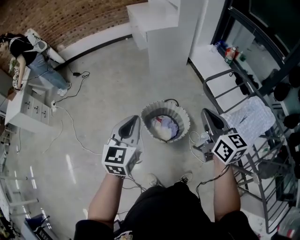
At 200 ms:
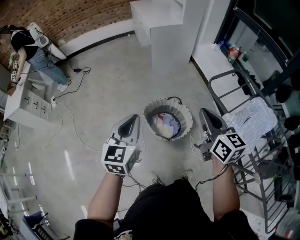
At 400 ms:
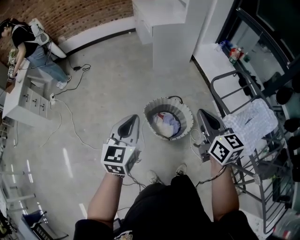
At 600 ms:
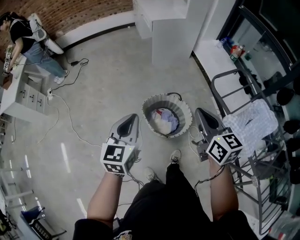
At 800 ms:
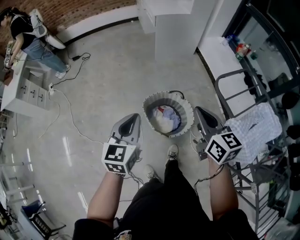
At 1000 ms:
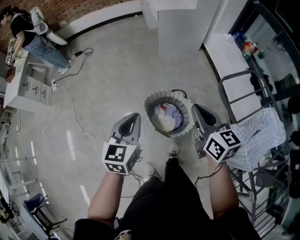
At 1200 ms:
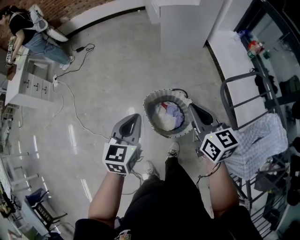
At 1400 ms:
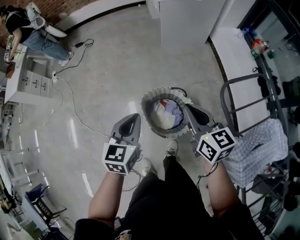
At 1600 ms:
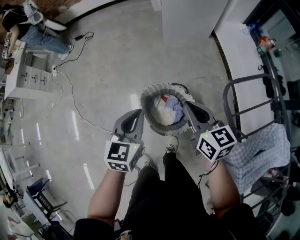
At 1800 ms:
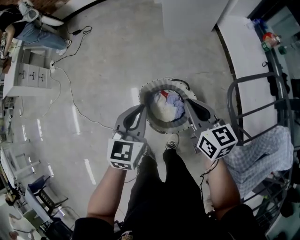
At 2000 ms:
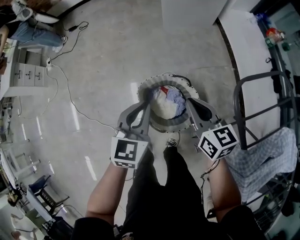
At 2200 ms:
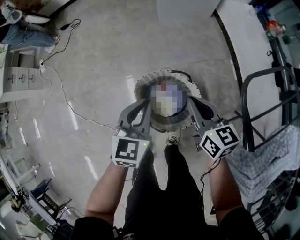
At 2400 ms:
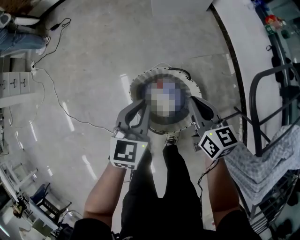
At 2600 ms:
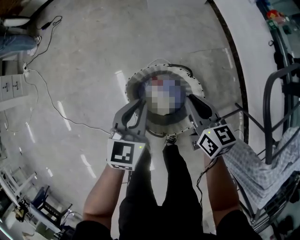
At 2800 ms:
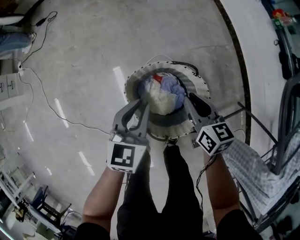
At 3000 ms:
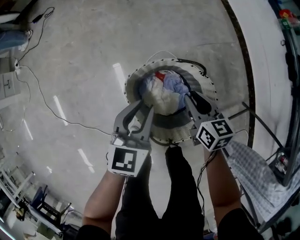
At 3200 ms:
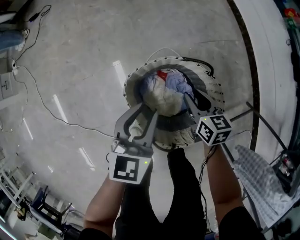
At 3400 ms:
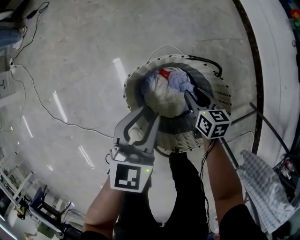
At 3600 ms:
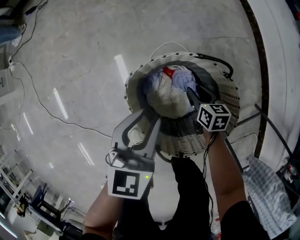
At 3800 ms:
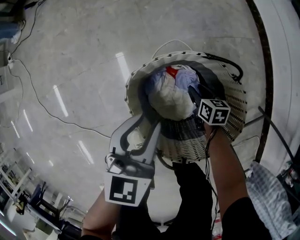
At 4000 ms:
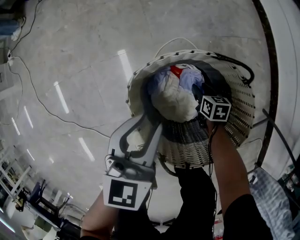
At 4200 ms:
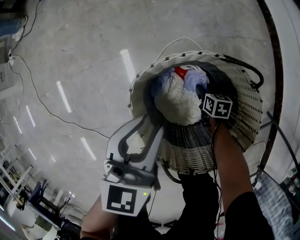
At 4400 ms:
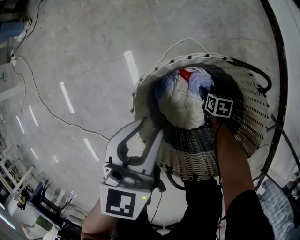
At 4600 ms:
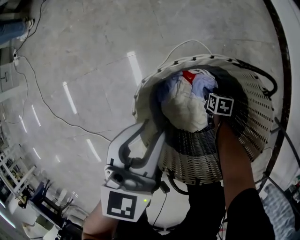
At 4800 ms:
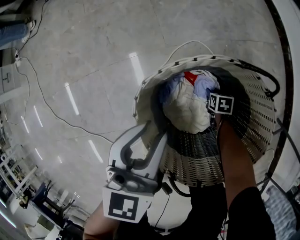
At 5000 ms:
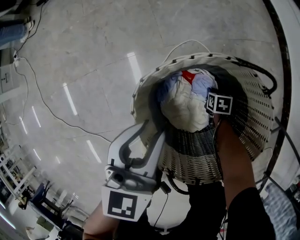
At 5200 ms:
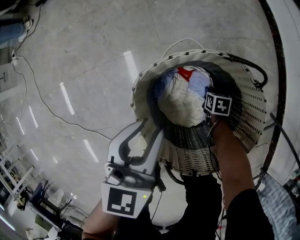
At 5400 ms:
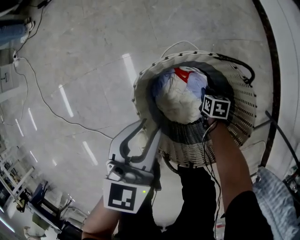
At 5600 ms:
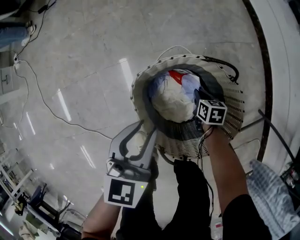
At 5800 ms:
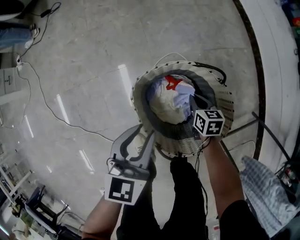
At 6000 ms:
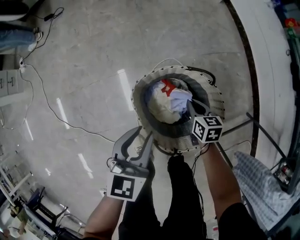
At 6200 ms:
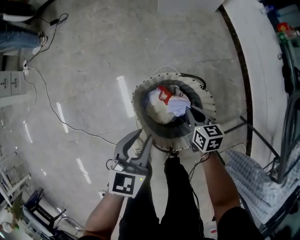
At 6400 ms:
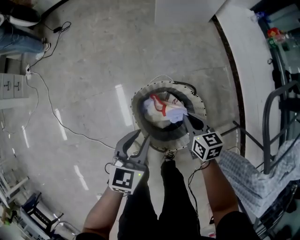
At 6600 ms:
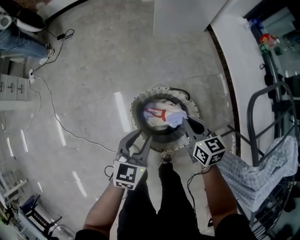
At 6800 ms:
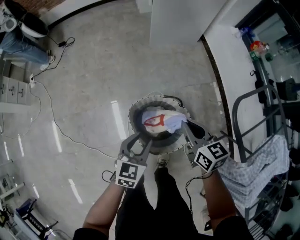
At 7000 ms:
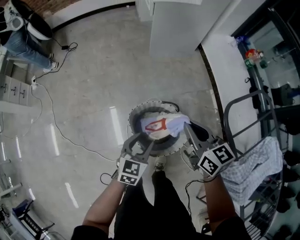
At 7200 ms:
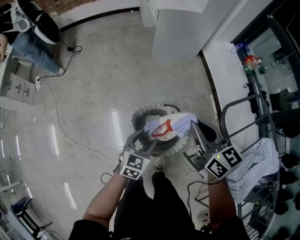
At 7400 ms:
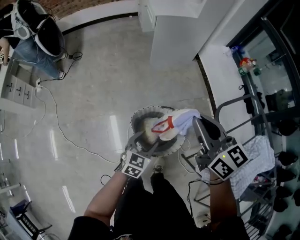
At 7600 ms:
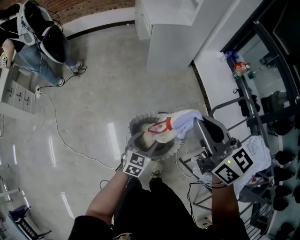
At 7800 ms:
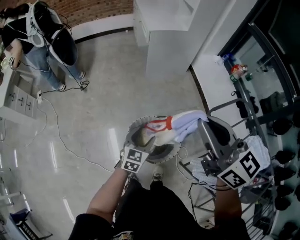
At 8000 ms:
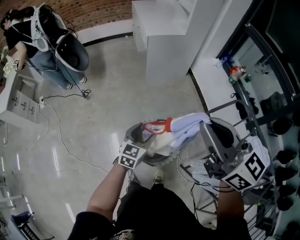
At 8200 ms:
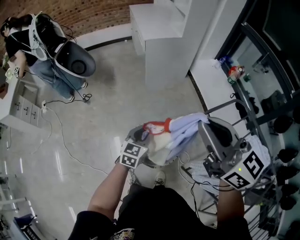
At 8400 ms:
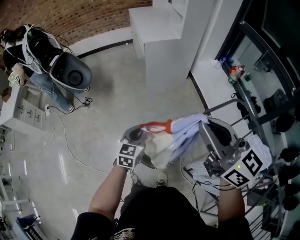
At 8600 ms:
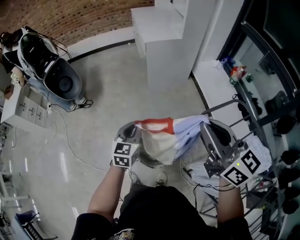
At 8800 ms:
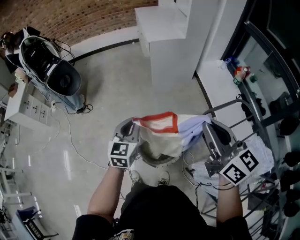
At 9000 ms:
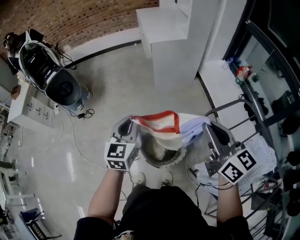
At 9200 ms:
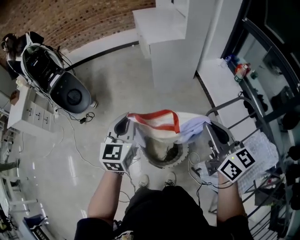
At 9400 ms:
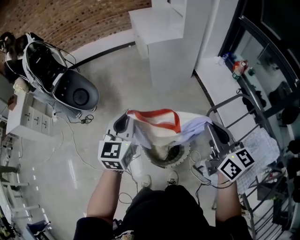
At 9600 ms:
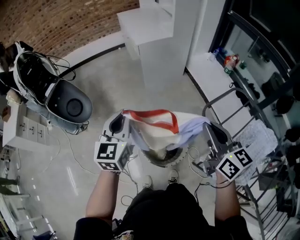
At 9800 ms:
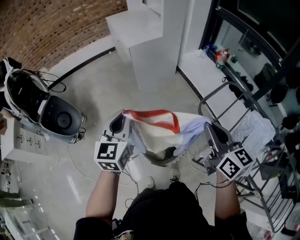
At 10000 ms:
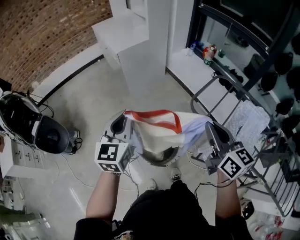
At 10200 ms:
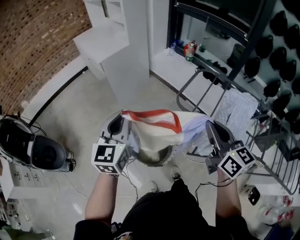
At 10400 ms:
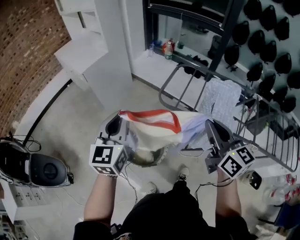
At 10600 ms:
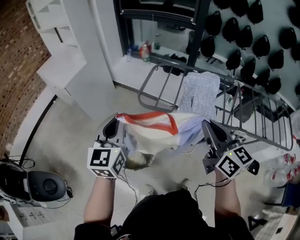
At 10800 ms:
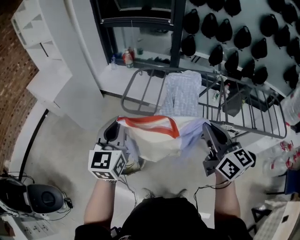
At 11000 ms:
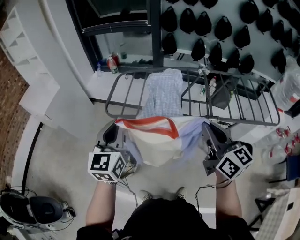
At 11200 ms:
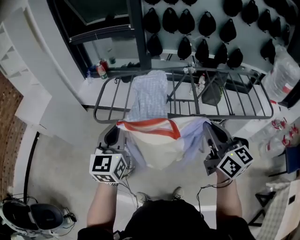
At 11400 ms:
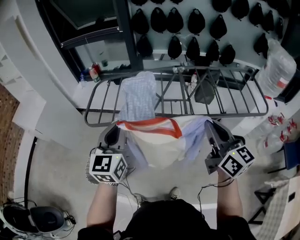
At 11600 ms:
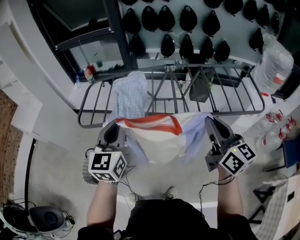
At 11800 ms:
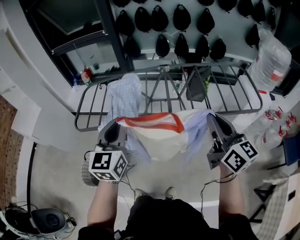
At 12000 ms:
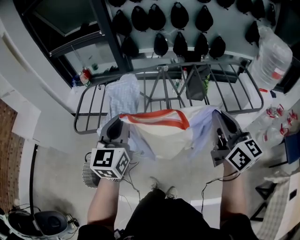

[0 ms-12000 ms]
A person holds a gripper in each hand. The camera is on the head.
0 ms to 1600 ms: The left gripper shifts approximately 20 cm downward, forward and to the right; the right gripper heads forward and downward, covering approximately 25 cm, and rotates about 20 degrees.
1600 ms to 3000 ms: The two grippers go roughly 35 cm downward. The right gripper opens its fingers.
3000 ms to 4400 ms: The left gripper is displaced downward by about 15 cm, while the right gripper heads downward, covering approximately 40 cm, tips its fingers downward by about 30 degrees, and opens.
4400 ms to 6000 ms: The right gripper moves upward, roughly 30 cm, rotates roughly 20 degrees, and closes its fingers. The left gripper shifts about 15 cm upward and backward.
6000 ms to 7600 ms: The left gripper moves upward, some 20 cm, and opens its fingers, while the right gripper goes some 70 cm upward, and tips its fingers upward by some 40 degrees.
7600 ms to 9000 ms: The left gripper shifts some 25 cm upward, turns by some 30 degrees, and closes; the right gripper goes roughly 10 cm to the right.
9000 ms to 10400 ms: The right gripper changes place by roughly 20 cm, and swivels some 50 degrees; the left gripper is displaced upward by approximately 10 cm, and changes its angle by approximately 40 degrees.
10400 ms to 12000 ms: The two grippers travel together, roughly 60 cm. The right gripper swivels approximately 30 degrees. Meanwhile the left gripper changes its angle by about 30 degrees.

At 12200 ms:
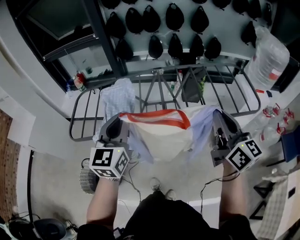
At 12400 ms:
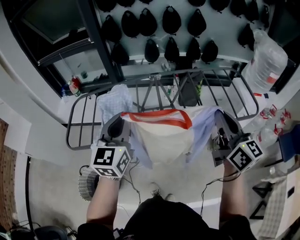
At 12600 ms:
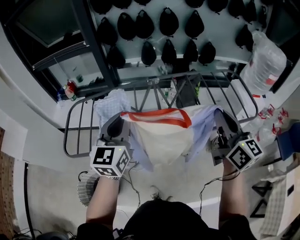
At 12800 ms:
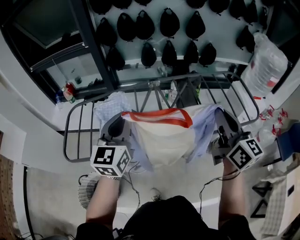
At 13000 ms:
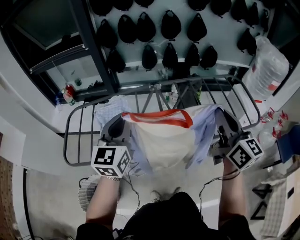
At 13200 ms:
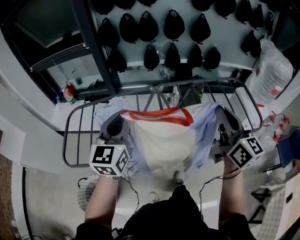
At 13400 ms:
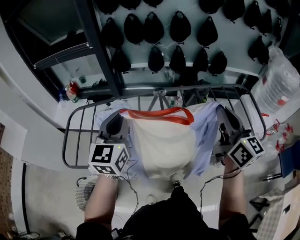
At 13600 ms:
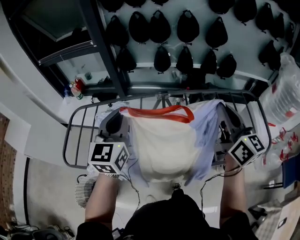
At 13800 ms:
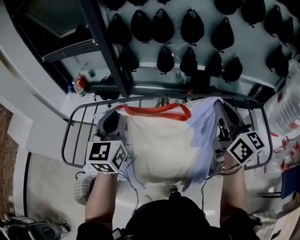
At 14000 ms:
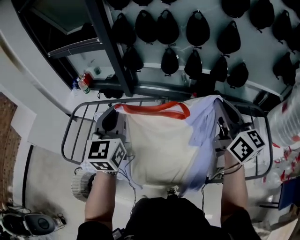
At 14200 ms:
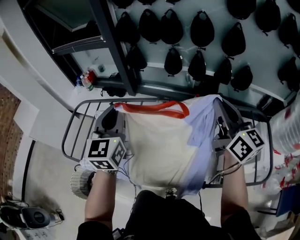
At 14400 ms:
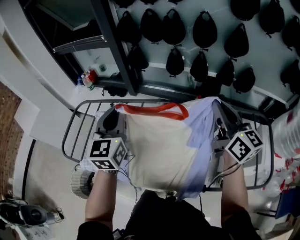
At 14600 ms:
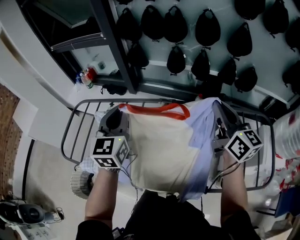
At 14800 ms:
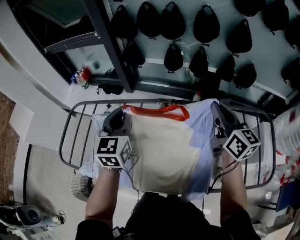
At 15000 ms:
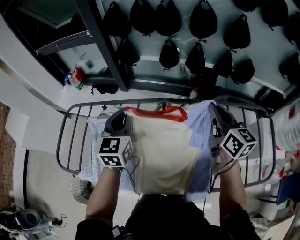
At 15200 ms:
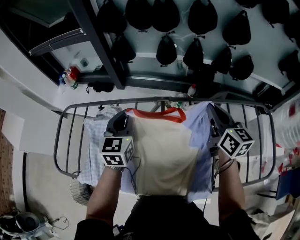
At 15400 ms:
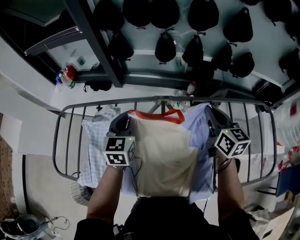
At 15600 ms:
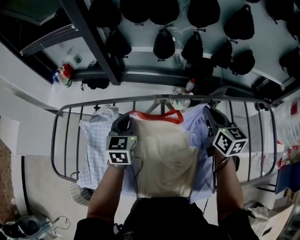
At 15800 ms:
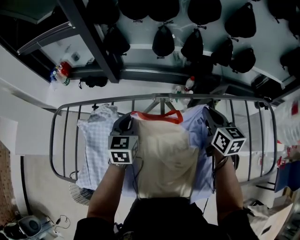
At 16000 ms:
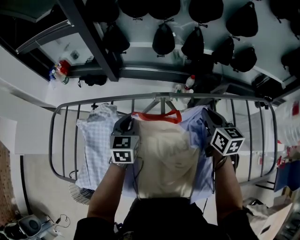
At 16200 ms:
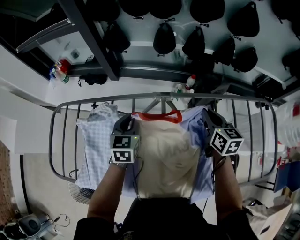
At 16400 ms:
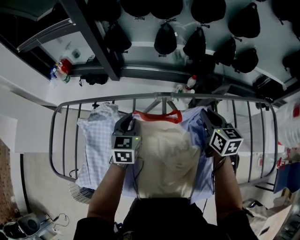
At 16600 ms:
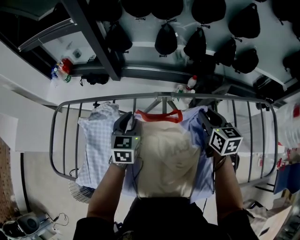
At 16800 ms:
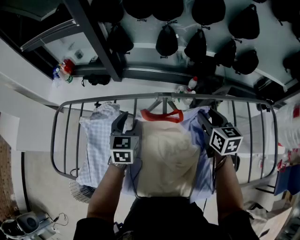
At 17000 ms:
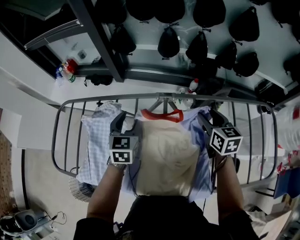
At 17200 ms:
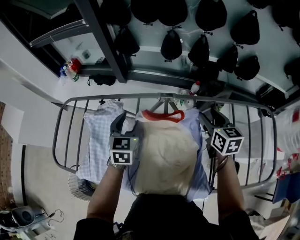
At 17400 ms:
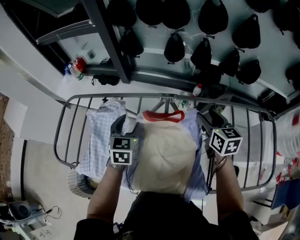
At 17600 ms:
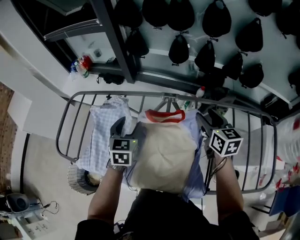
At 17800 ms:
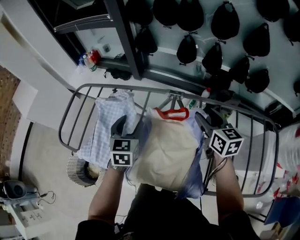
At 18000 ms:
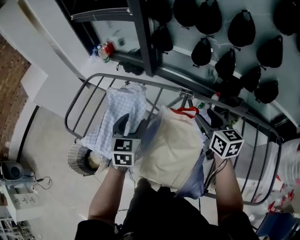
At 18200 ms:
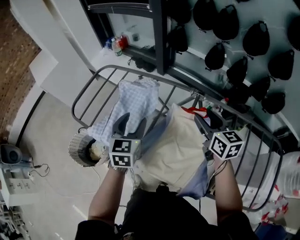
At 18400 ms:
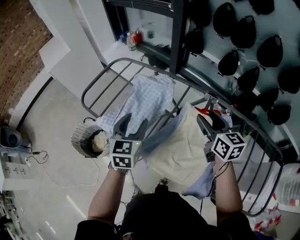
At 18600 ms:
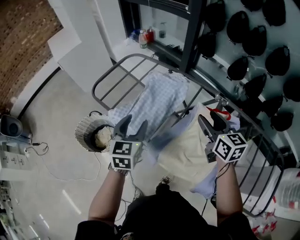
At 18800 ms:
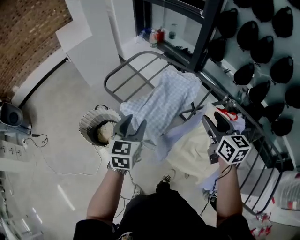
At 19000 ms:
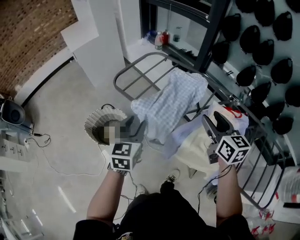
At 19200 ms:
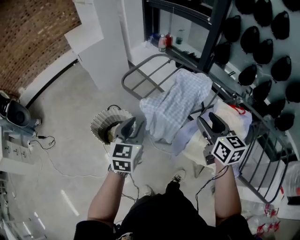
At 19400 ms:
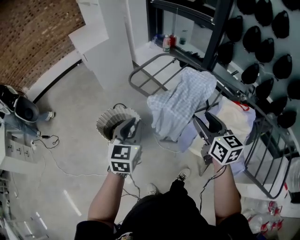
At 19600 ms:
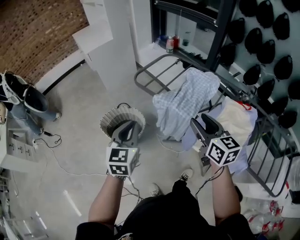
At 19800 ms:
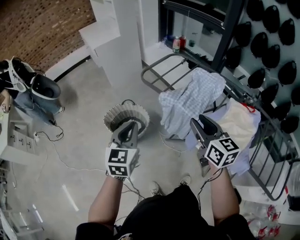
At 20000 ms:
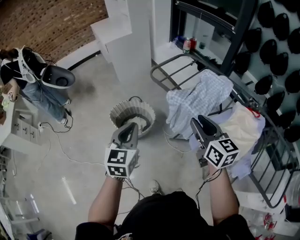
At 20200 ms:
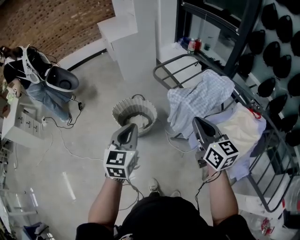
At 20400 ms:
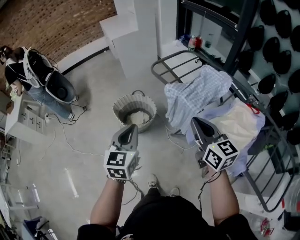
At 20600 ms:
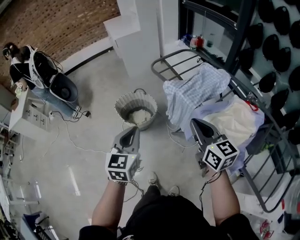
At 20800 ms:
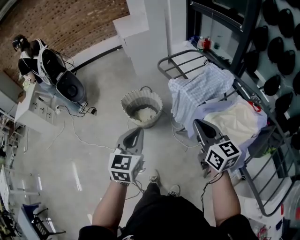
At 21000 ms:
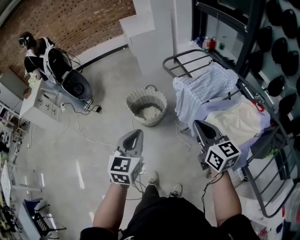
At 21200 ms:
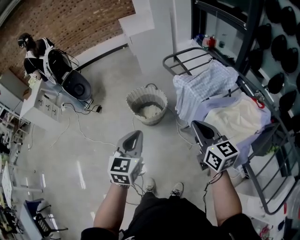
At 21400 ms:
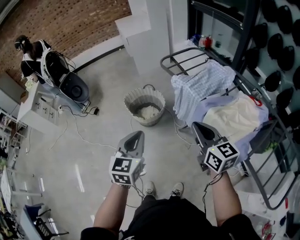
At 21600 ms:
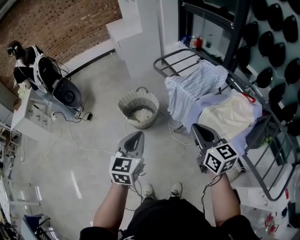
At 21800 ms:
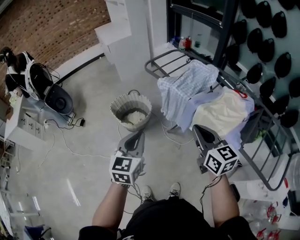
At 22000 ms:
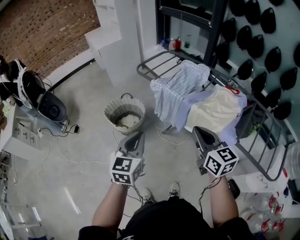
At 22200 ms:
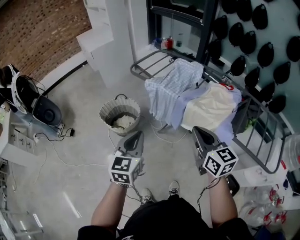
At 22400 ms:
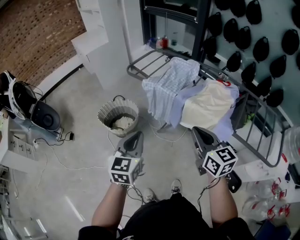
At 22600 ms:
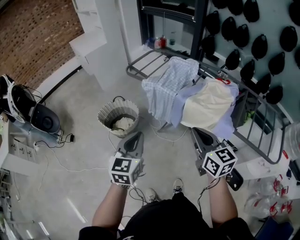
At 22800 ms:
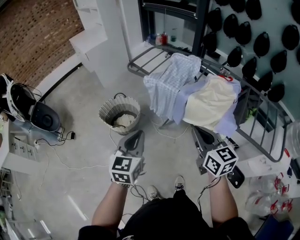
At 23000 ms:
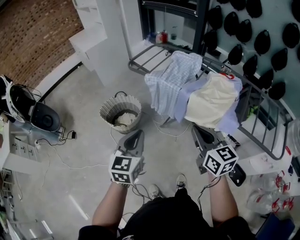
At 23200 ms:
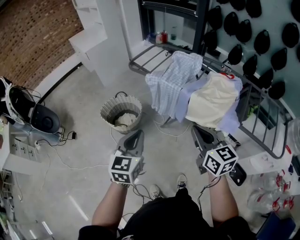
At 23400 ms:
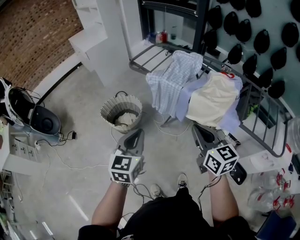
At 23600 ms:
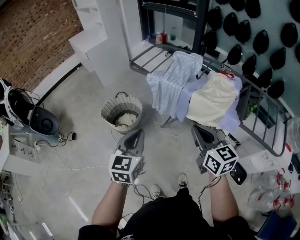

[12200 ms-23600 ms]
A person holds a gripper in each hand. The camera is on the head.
12200 ms to 13600 ms: The two grippers go some 25 cm forward.
13600 ms to 15000 ms: Both grippers move forward and downward, roughly 20 cm.
15000 ms to 16400 ms: The grippers both shift downward by approximately 15 cm.
16400 ms to 17800 ms: The right gripper travels upward by about 5 cm, and opens its fingers; the left gripper shifts approximately 10 cm backward and upward, and opens its fingers.
17800 ms to 19400 ms: The two grippers travel together, approximately 50 cm. The right gripper swivels about 30 degrees; the left gripper rotates roughly 30 degrees, and closes up.
19400 ms to 20800 ms: The right gripper is displaced backward and to the left by about 15 cm, changes its angle by approximately 20 degrees, and closes up, while the left gripper heads backward, covering about 25 cm.
20800 ms to 22200 ms: The right gripper goes roughly 10 cm backward.
22200 ms to 23600 ms: The right gripper shifts by some 5 cm.
